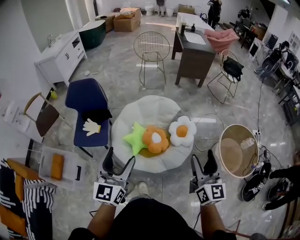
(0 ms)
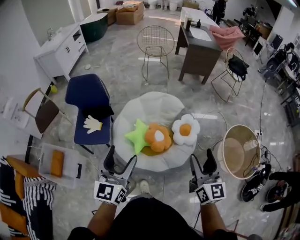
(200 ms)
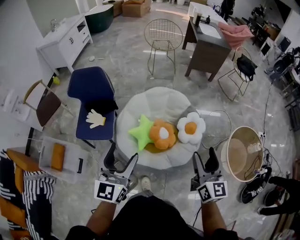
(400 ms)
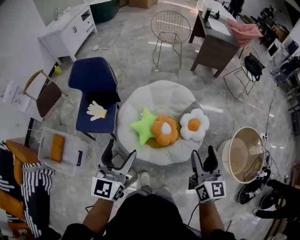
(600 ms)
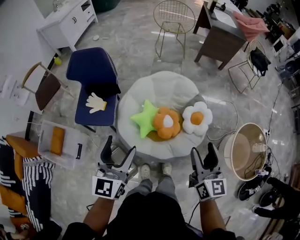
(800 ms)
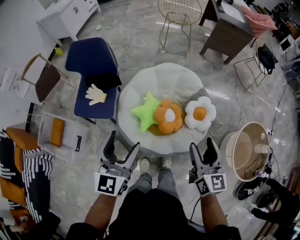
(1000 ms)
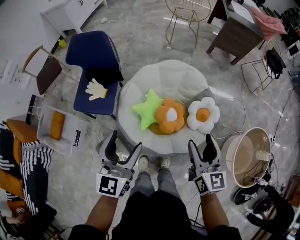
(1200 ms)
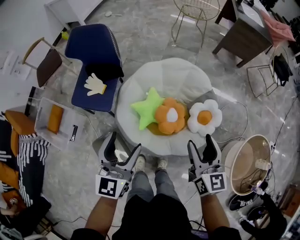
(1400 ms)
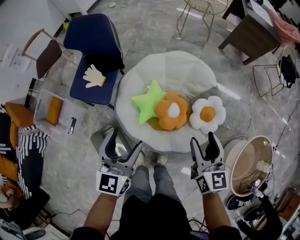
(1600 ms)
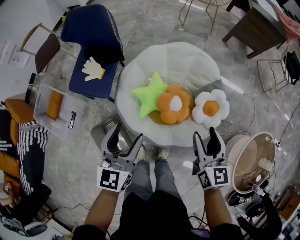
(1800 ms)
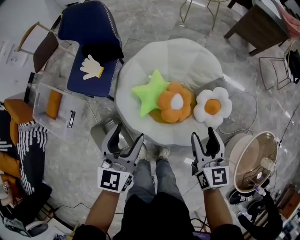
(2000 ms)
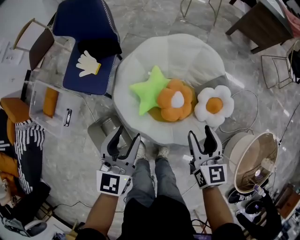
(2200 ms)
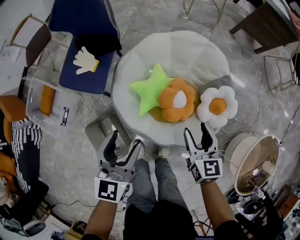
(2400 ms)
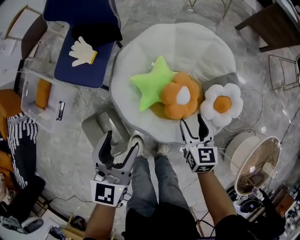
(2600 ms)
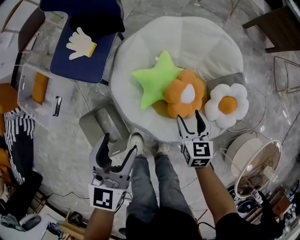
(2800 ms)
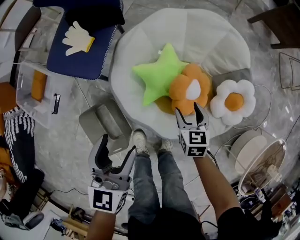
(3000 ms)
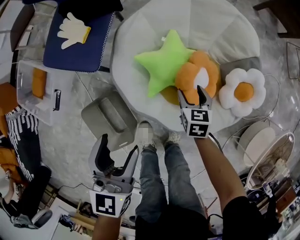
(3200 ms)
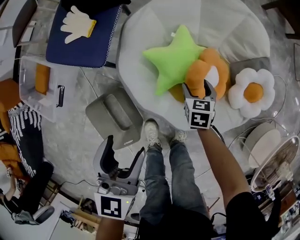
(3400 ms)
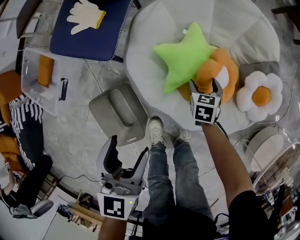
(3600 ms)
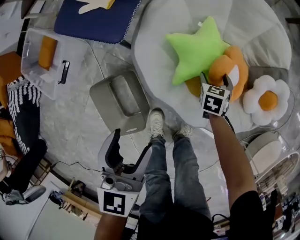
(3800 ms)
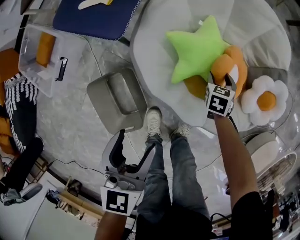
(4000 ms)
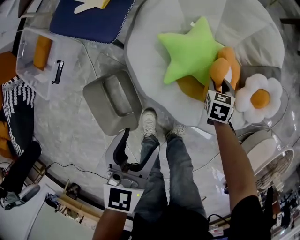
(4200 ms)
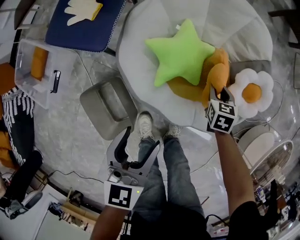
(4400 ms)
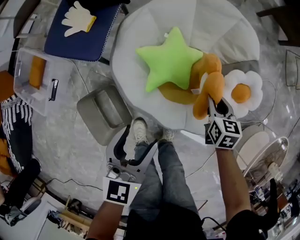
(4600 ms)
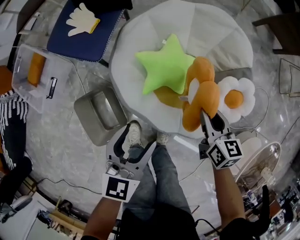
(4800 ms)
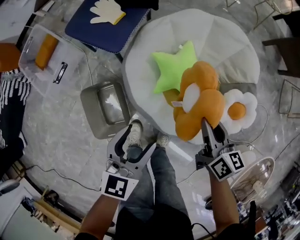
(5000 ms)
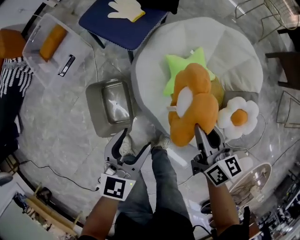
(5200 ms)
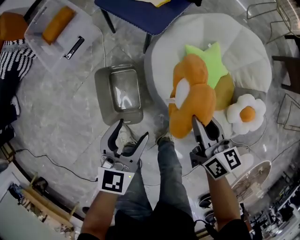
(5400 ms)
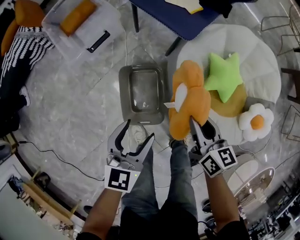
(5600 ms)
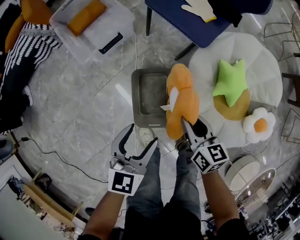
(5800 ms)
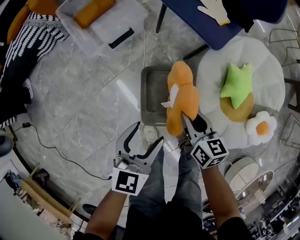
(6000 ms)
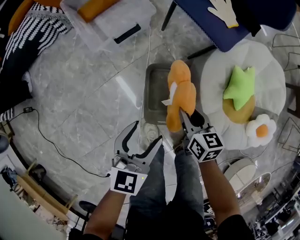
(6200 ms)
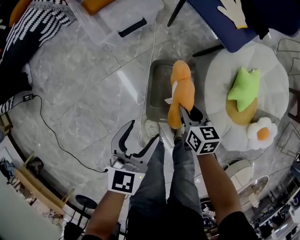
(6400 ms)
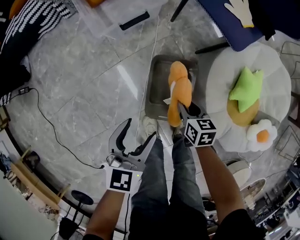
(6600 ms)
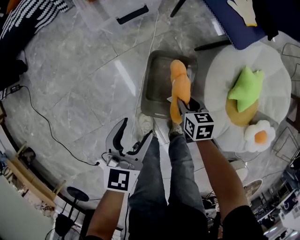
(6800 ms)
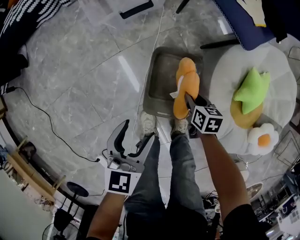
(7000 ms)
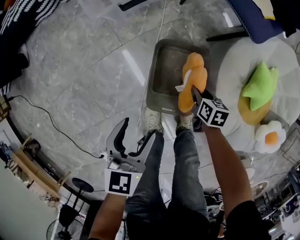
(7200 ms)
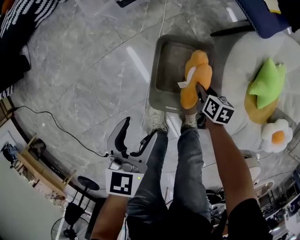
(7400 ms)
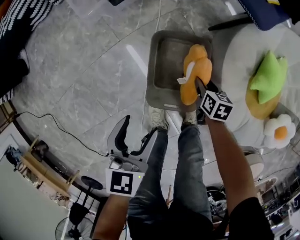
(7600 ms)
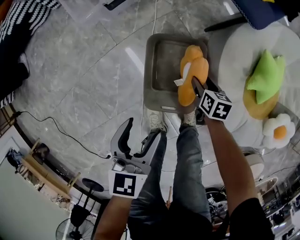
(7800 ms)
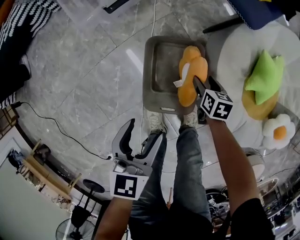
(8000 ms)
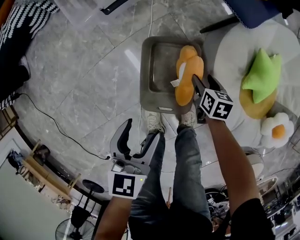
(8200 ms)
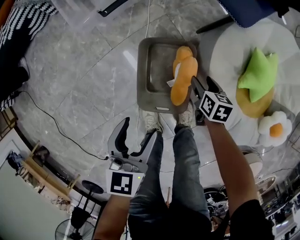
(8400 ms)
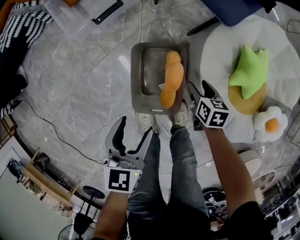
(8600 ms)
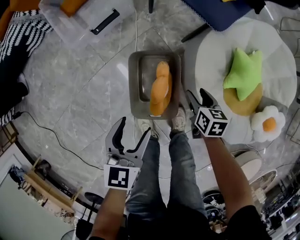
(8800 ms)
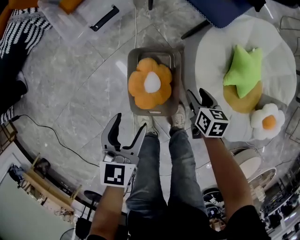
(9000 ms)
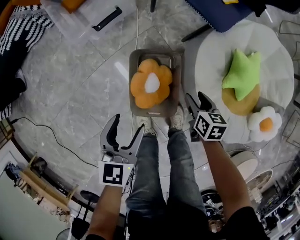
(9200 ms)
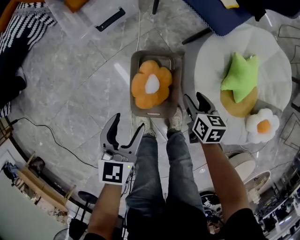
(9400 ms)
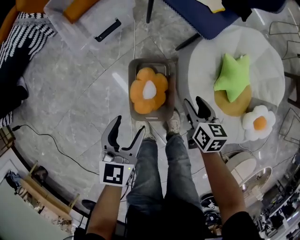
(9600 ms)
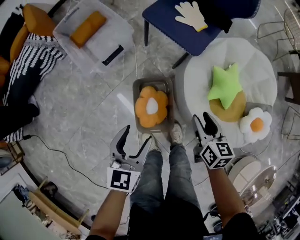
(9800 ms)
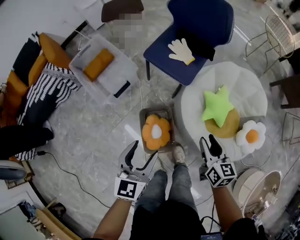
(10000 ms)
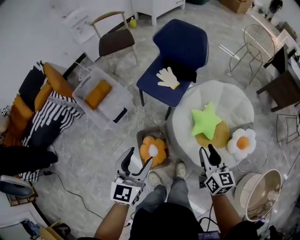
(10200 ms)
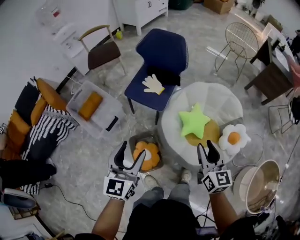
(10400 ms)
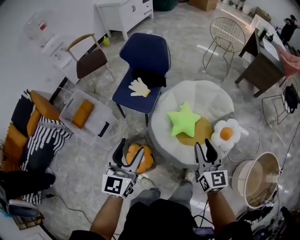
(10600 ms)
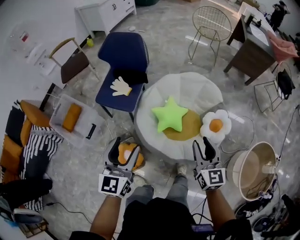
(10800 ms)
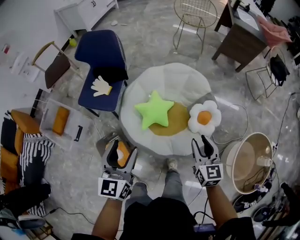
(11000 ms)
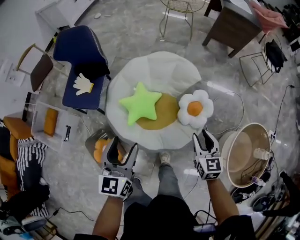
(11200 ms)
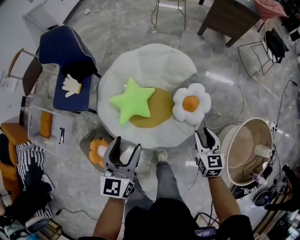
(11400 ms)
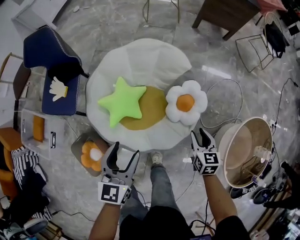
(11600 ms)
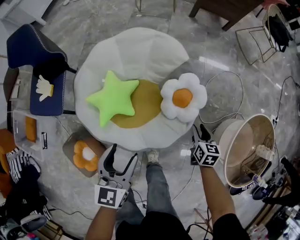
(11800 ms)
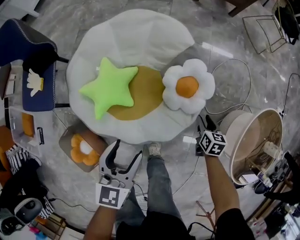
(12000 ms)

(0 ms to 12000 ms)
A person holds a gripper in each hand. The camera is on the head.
0 ms - 1600 ms: The right gripper shifts about 30 cm forward and downward, and changes its angle by roughly 30 degrees. Meanwhile the left gripper is displaced downward and forward by some 25 cm, and swivels approximately 20 degrees.
1600 ms - 3000 ms: The left gripper moves downward, about 20 cm. The right gripper shifts roughly 35 cm downward, and angles its fingers downward, by some 30 degrees.
3000 ms - 4400 ms: The left gripper moves downward and backward, about 10 cm, while the right gripper is displaced downward and to the right by roughly 10 cm, and closes its fingers.
4400 ms - 6000 ms: The right gripper moves approximately 50 cm, and turns by approximately 40 degrees; the left gripper shifts by about 35 cm.
6000 ms - 7600 ms: The left gripper heads downward and to the left, covering approximately 15 cm, and turns by some 30 degrees. Meanwhile the right gripper goes roughly 30 cm downward, and rotates about 20 degrees.
7600 ms - 9000 ms: The left gripper shifts by about 5 cm. Meanwhile the right gripper travels upward and to the right by roughly 15 cm.
9000 ms - 10400 ms: Both grippers travel together upward, roughly 40 cm. The right gripper tilts its fingers some 40 degrees upward. The left gripper swivels roughly 30 degrees.
10400 ms - 12000 ms: The pair of grippers is taken about 50 cm. The right gripper angles its fingers downward, by approximately 40 degrees. The left gripper rotates approximately 40 degrees.

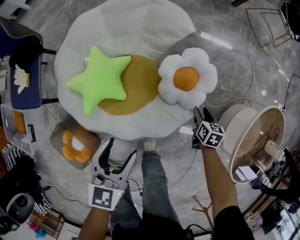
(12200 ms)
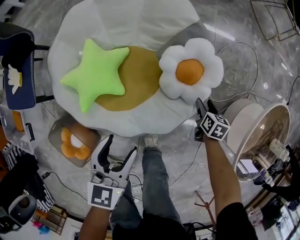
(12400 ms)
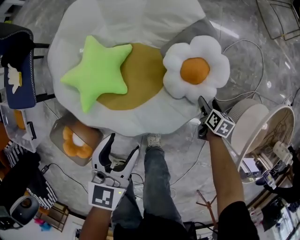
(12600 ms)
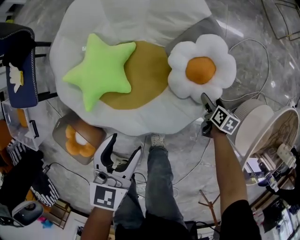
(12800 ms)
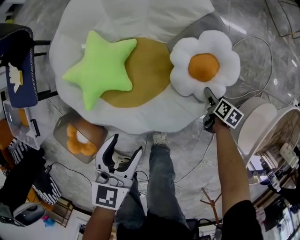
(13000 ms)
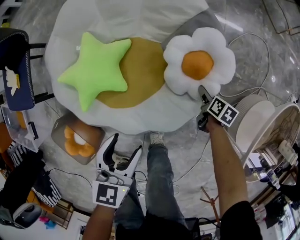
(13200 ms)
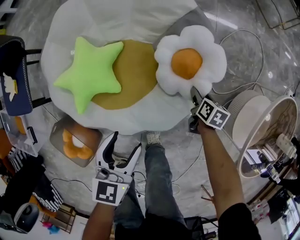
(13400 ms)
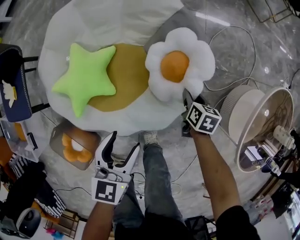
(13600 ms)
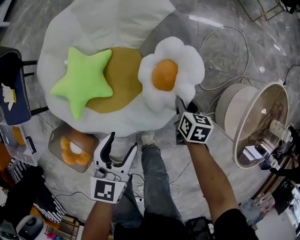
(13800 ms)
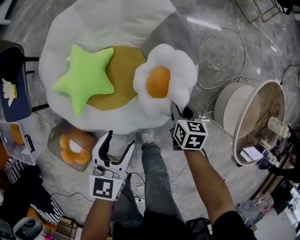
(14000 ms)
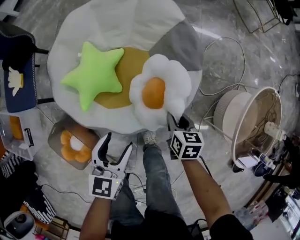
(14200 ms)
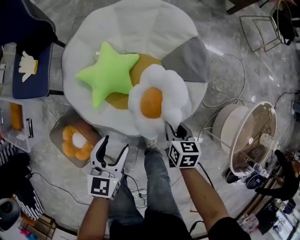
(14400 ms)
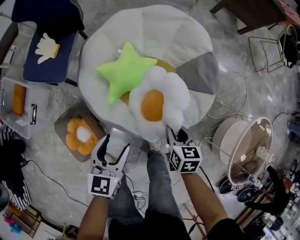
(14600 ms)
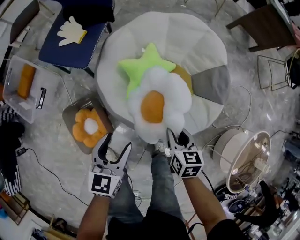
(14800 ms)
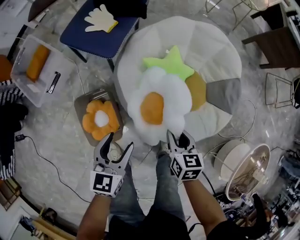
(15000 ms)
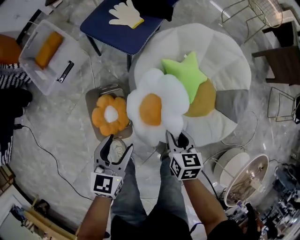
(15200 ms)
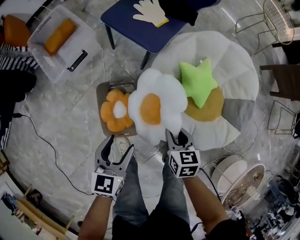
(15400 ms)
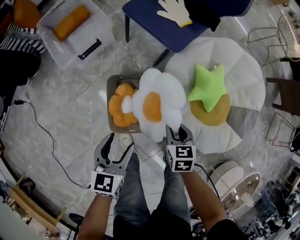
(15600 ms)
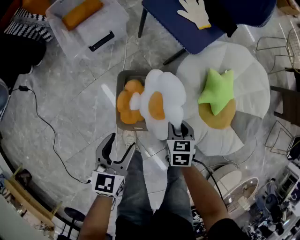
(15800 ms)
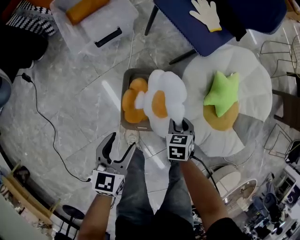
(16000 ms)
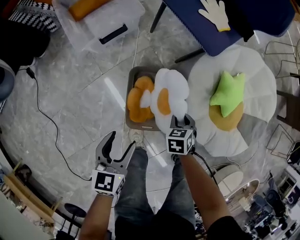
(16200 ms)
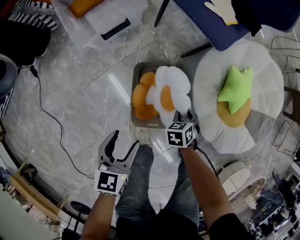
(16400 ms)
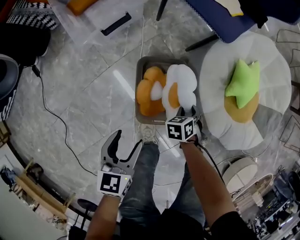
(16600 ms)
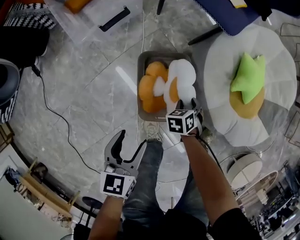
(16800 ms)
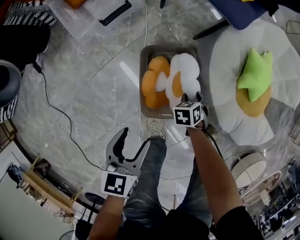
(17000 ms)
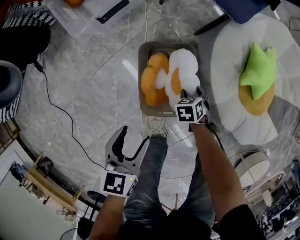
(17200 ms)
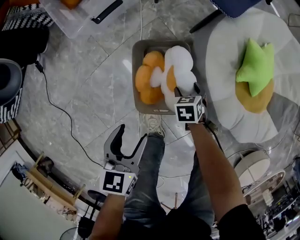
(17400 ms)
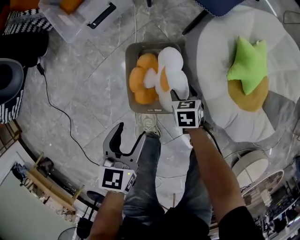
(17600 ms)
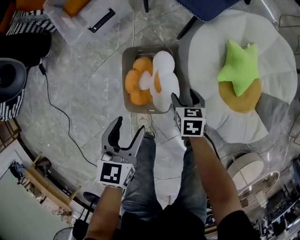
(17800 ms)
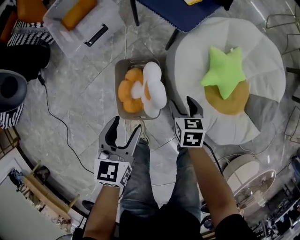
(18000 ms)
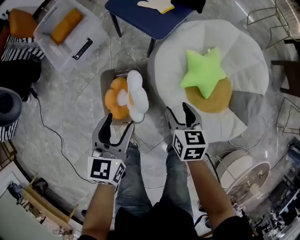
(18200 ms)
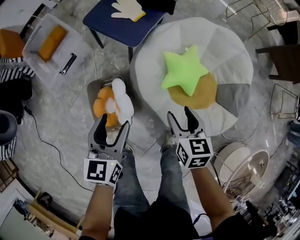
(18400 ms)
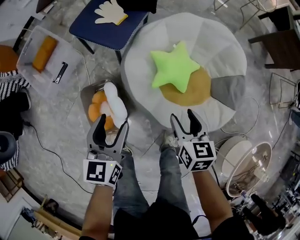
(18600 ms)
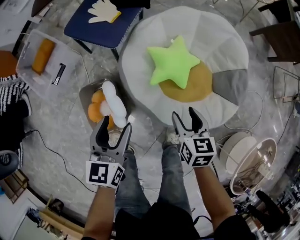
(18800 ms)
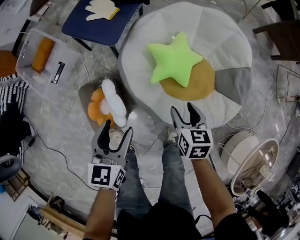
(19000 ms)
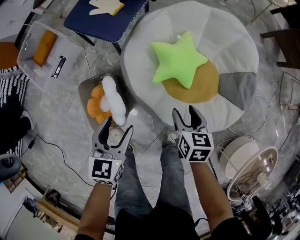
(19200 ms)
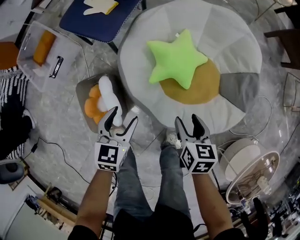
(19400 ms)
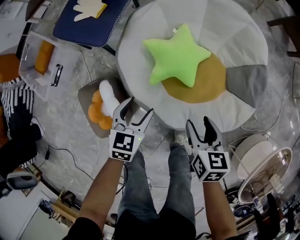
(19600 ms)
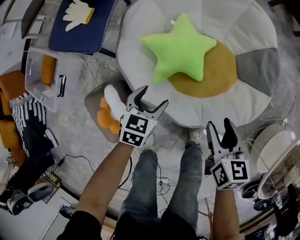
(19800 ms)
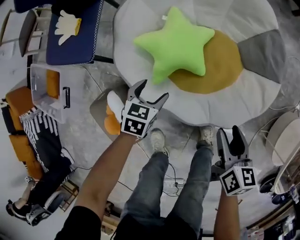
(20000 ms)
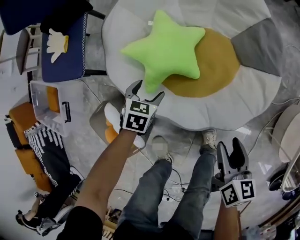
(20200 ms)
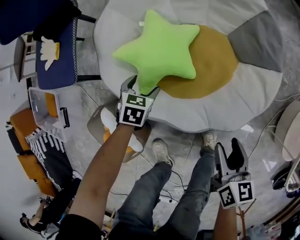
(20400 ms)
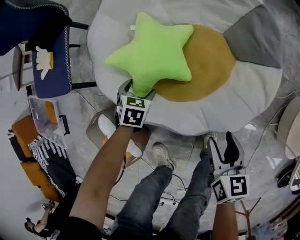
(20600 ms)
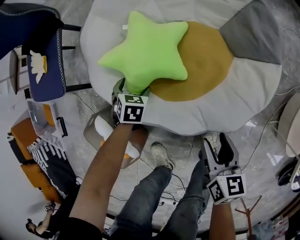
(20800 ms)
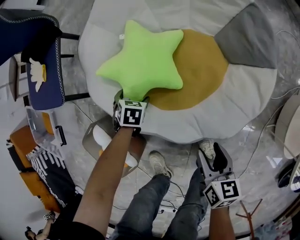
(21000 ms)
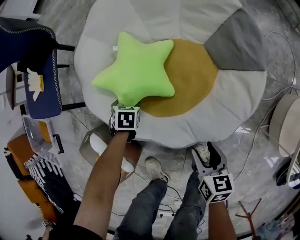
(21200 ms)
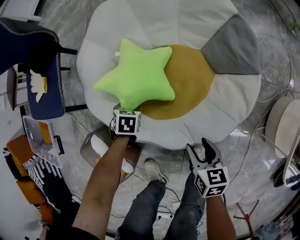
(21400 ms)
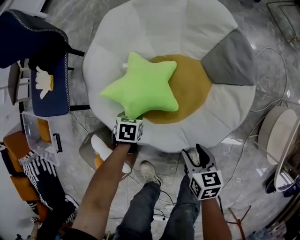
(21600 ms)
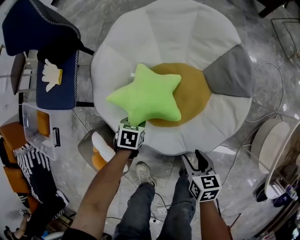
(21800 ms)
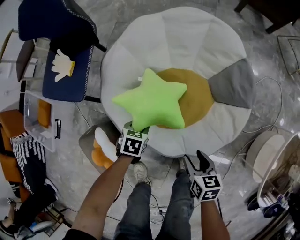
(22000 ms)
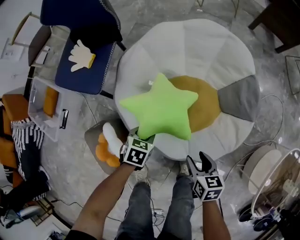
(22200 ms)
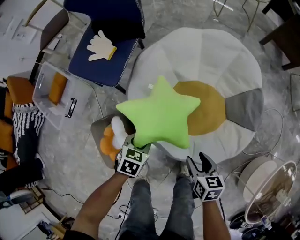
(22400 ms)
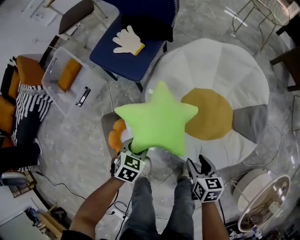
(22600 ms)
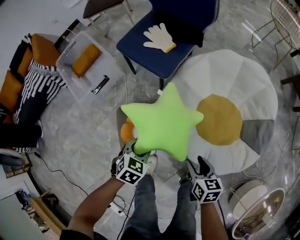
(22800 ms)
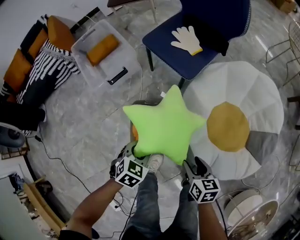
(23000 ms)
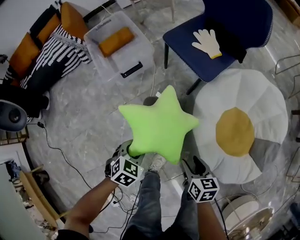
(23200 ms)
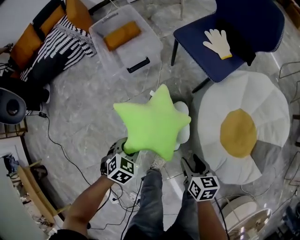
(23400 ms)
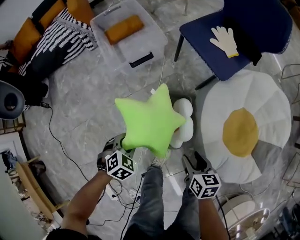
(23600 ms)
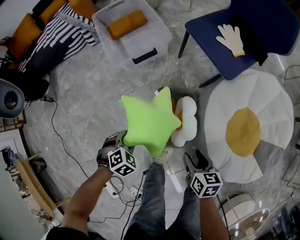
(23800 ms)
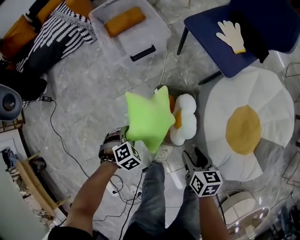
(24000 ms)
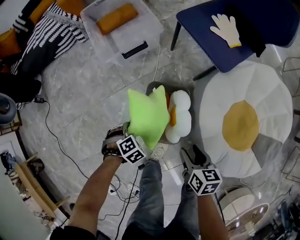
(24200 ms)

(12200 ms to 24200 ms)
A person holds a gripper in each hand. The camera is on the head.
12200 ms - 13800 ms: The right gripper reaches about 10 cm downward, then returns, and opens, then closes again. Meanwhile the left gripper changes place by approximately 5 cm.
13800 ms - 15200 ms: Both grippers are carried some 50 cm. The left gripper changes its angle by approximately 40 degrees. Meanwhile the right gripper rotates around the line of its fingers by approximately 40 degrees, counterclockwise from behind.
15200 ms - 16600 ms: The right gripper goes roughly 20 cm downward, and rotates roughly 50 degrees; the left gripper ends up approximately 25 cm from where it was.
16600 ms - 18200 ms: The left gripper changes place by some 20 cm. Meanwhile the right gripper shifts about 20 cm upward, and changes its angle by some 40 degrees.
18200 ms - 19800 ms: The right gripper changes place by roughly 30 cm, and turns by roughly 30 degrees. The left gripper moves about 35 cm, and rotates some 50 degrees.
19800 ms - 21200 ms: Both grippers move downward, some 15 cm. The left gripper rotates about 30 degrees.
21200 ms - 22600 ms: The left gripper moves upward, approximately 25 cm, and changes its angle by some 20 degrees, while the right gripper travels upward by approximately 15 cm, and changes its angle by about 30 degrees.
22600 ms - 24200 ms: The left gripper moves roughly 35 cm, and turns by roughly 30 degrees; the right gripper moves approximately 30 cm, and changes its angle by some 20 degrees.
